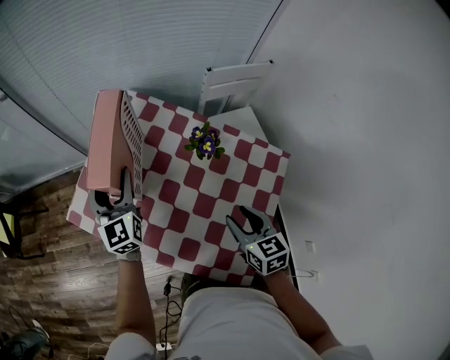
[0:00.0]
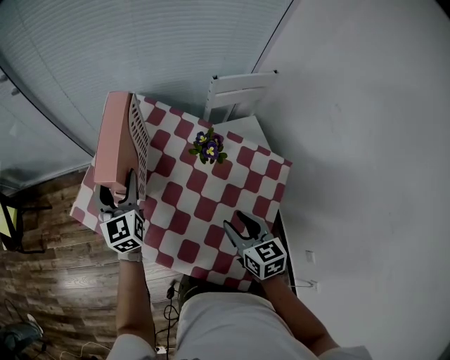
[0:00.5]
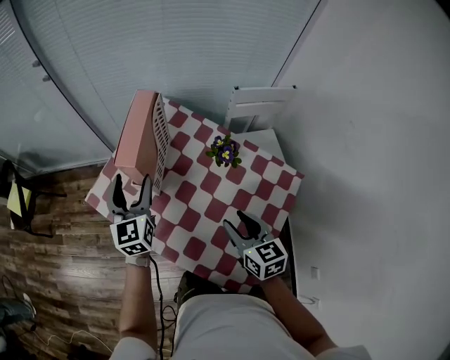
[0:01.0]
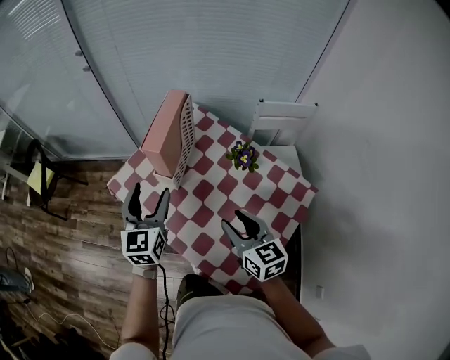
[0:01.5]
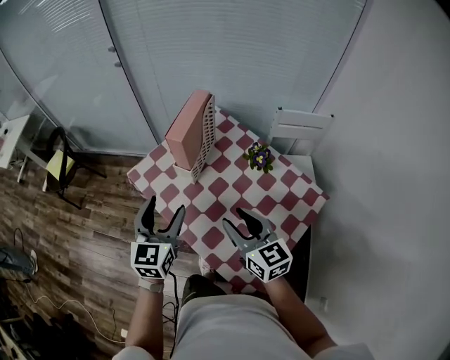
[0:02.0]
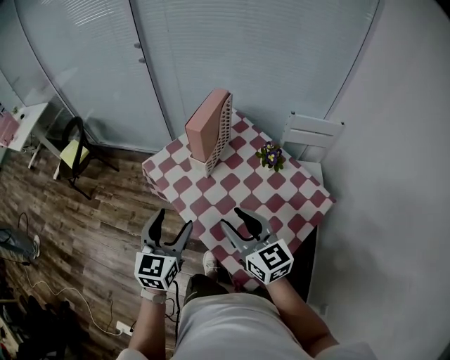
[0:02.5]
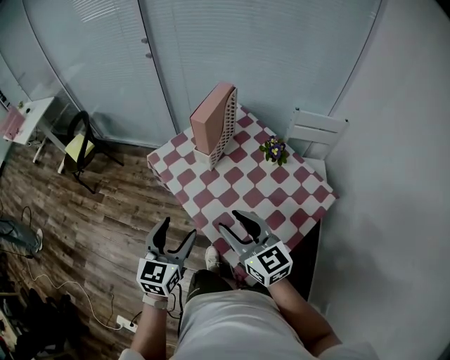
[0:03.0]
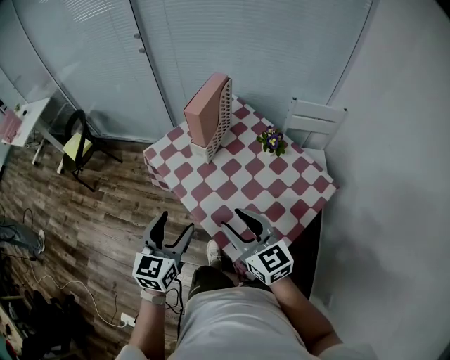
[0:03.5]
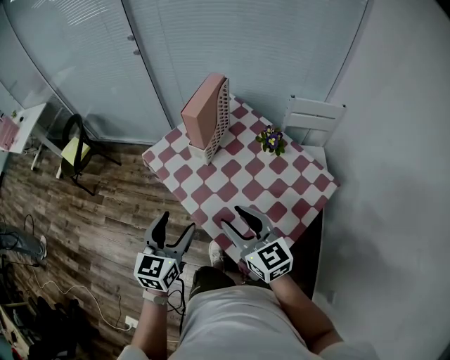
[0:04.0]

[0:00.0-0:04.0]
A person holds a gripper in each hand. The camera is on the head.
0:00.0 to 0:02.0: The left gripper shifts some 25 cm backward. Meanwhile the right gripper travels upward and to the left by about 15 cm, and changes its angle by some 40 degrees.
0:02.0 to 0:04.0: The right gripper is displaced backward and to the left by roughly 10 cm. The left gripper goes about 10 cm backward.

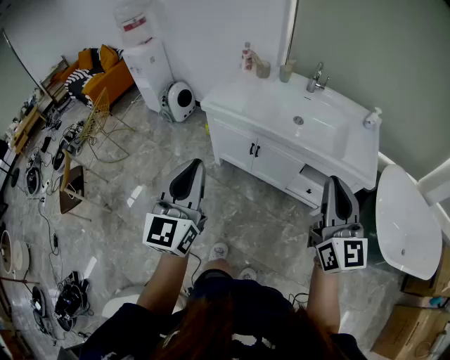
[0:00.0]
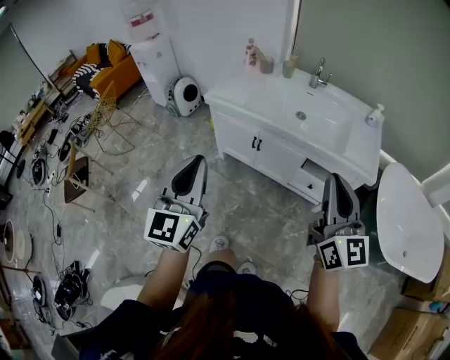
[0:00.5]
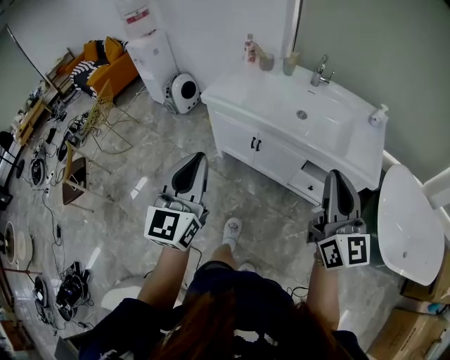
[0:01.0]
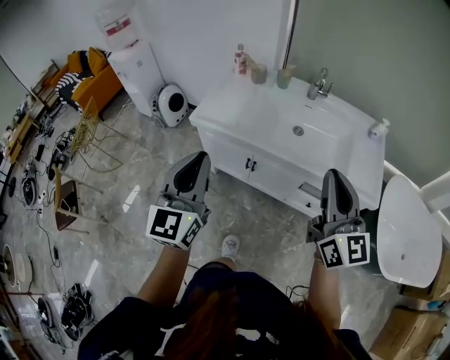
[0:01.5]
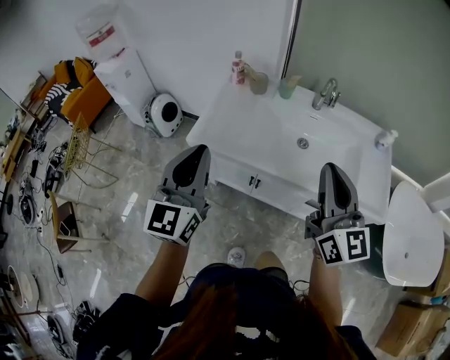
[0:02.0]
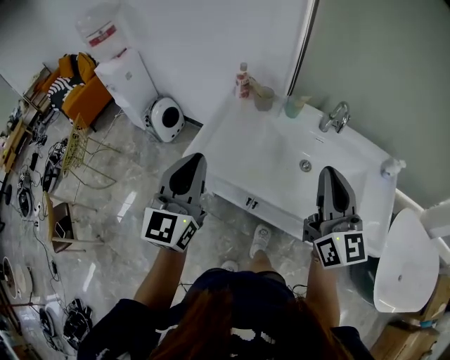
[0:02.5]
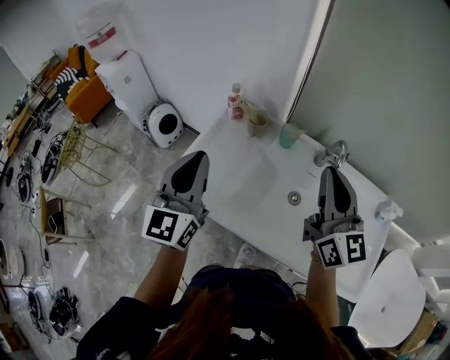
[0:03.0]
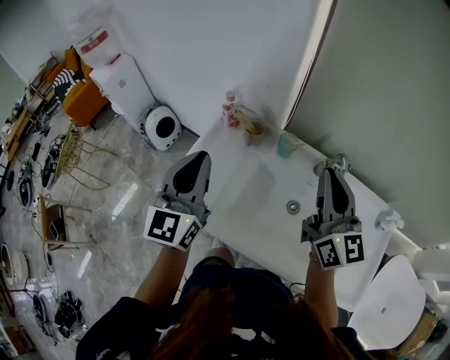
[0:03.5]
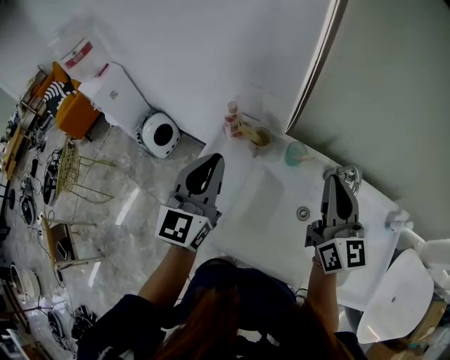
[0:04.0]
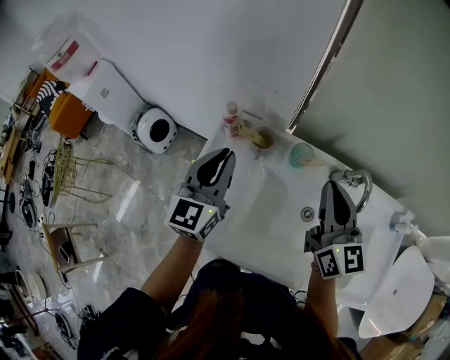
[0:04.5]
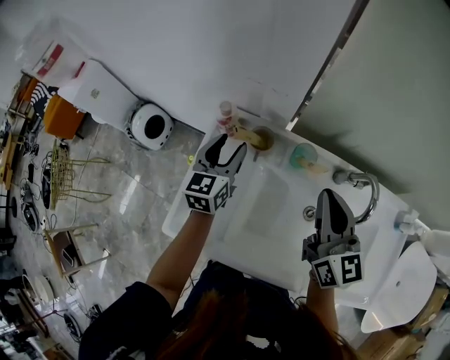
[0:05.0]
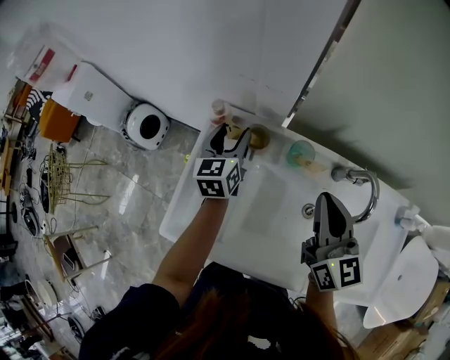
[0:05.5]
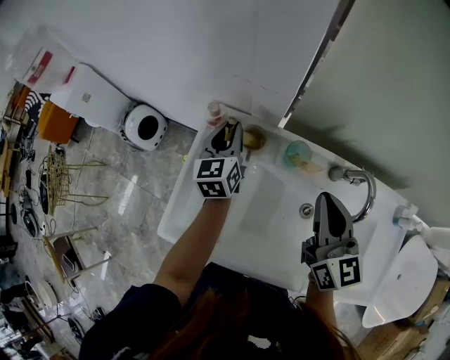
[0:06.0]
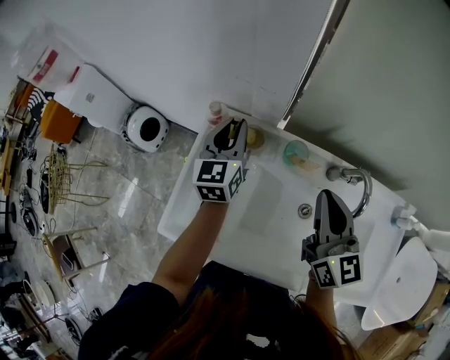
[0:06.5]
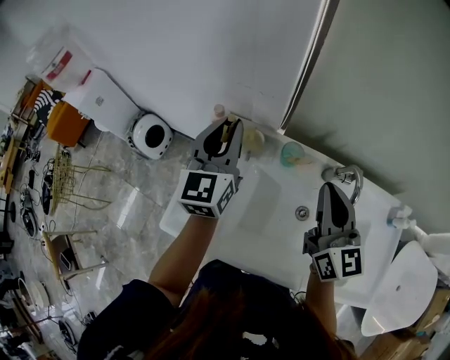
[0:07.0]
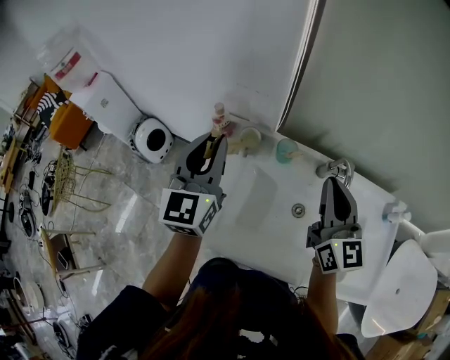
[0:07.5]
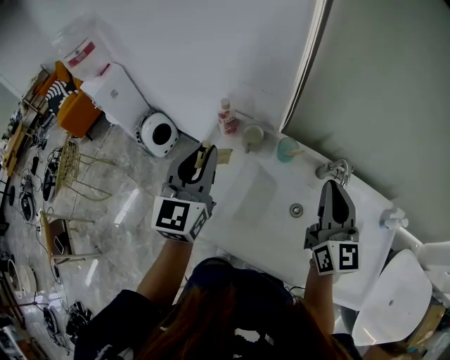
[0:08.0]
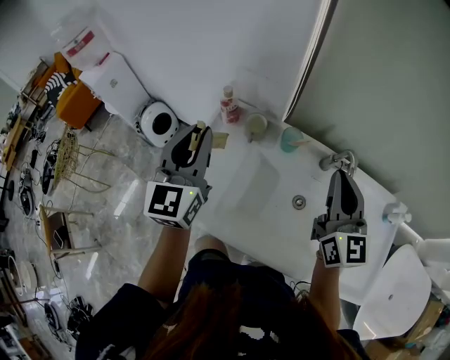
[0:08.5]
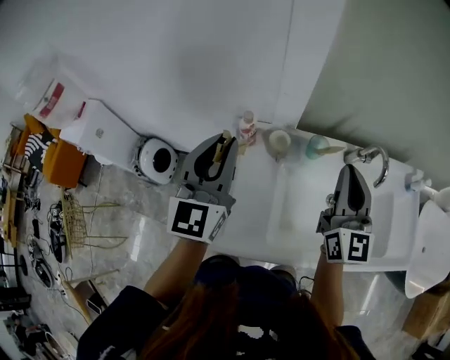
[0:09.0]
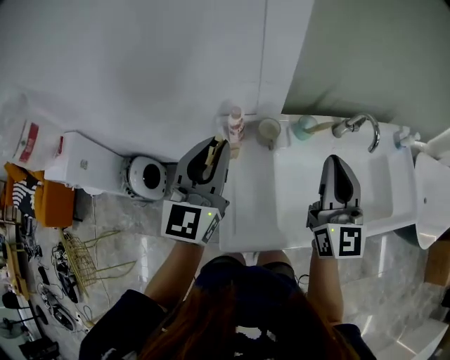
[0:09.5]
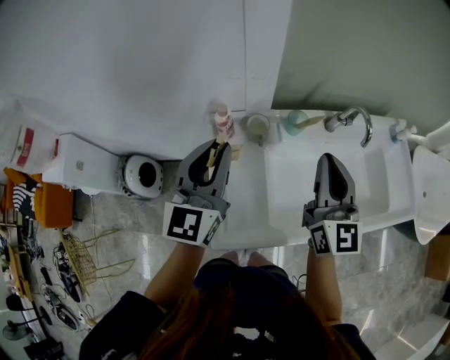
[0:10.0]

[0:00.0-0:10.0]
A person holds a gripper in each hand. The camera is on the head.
0:00.0 to 0:02.0: Both grippers move forward, approximately 30 cm.
0:02.0 to 0:04.0: Both grippers are carried forward, approximately 40 cm.
0:04.0 to 0:06.0: The right gripper shifts roughly 10 cm downward and forward. Meanwhile the left gripper is displaced forward and downward by about 30 cm, rotates approximately 20 degrees, and opens, then closes once more.
0:06.0 to 0:08.0: The left gripper goes approximately 30 cm backward and upward, and changes its angle by about 20 degrees, while the right gripper moves backward, upward and to the right, about 15 cm.
0:08.0 to 0:10.0: The left gripper shifts by approximately 15 cm, and changes its angle by roughly 30 degrees; the right gripper ends up some 20 cm from where it was, and swivels roughly 30 degrees.

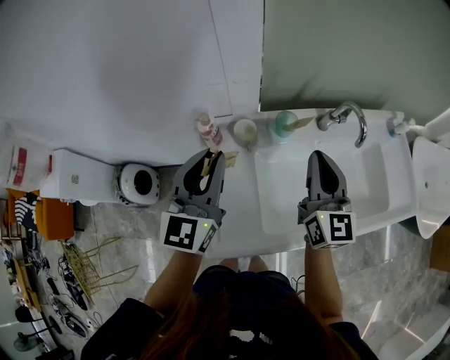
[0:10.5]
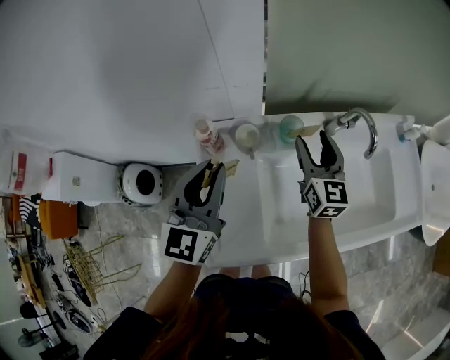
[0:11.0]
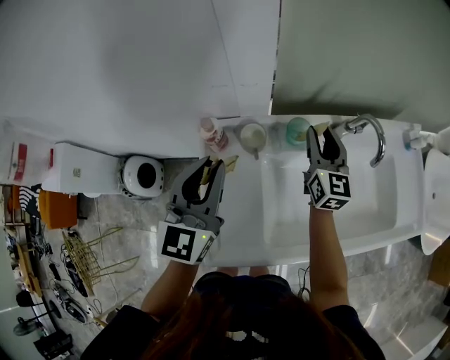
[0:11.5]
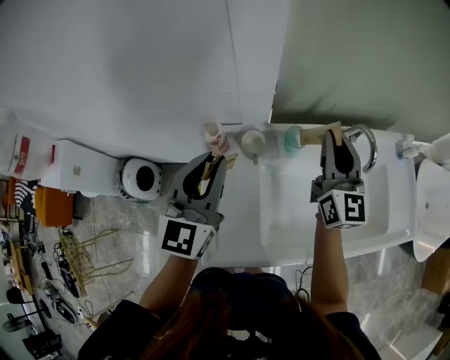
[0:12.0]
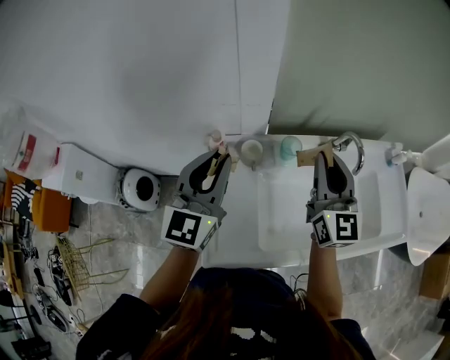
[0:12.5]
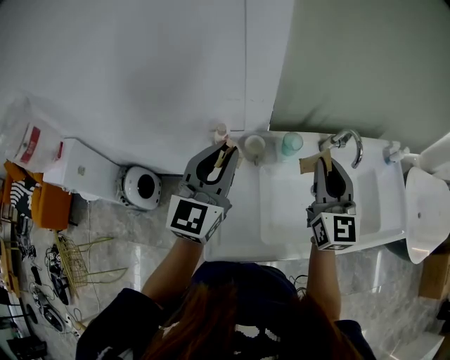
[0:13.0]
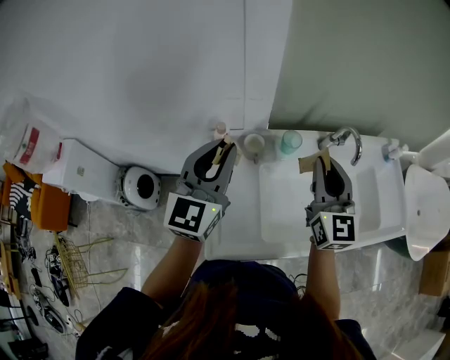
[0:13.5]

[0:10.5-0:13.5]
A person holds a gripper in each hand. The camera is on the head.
0:10.5 to 0:12.0: The right gripper shifts approximately 10 cm forward, and opens, then closes again.
0:12.0 to 0:13.5: The left gripper travels upward by about 5 cm. Meanwhile the right gripper heads backward, covering roughly 10 cm.

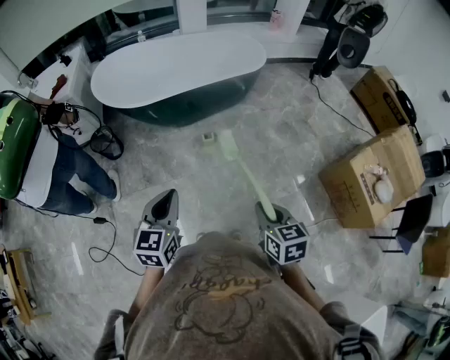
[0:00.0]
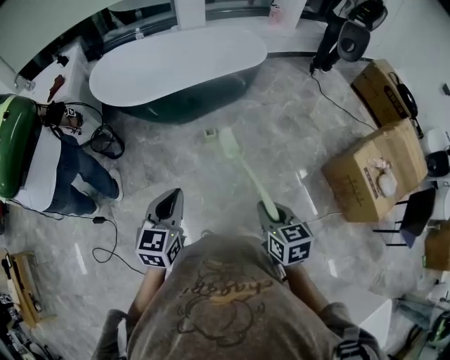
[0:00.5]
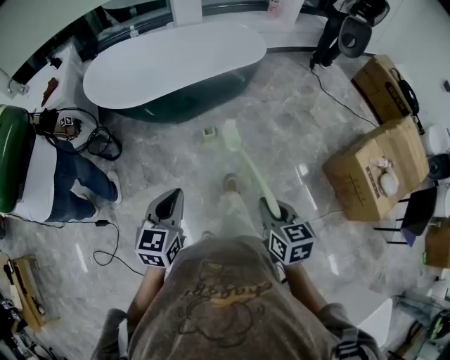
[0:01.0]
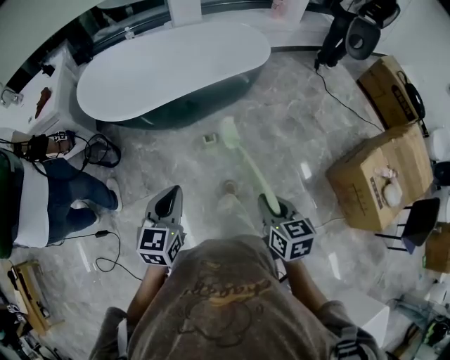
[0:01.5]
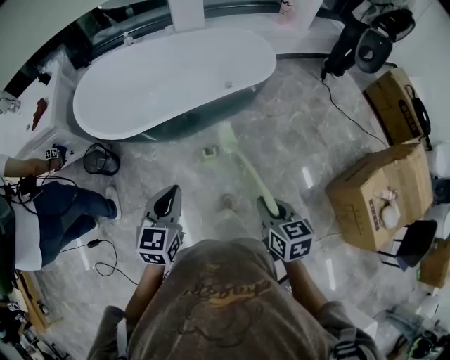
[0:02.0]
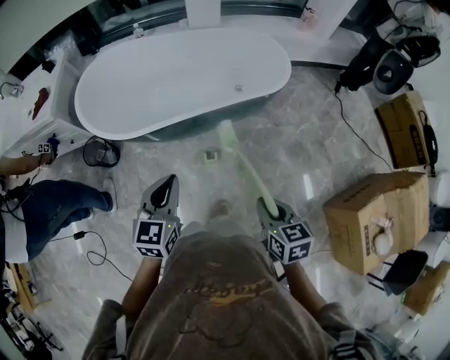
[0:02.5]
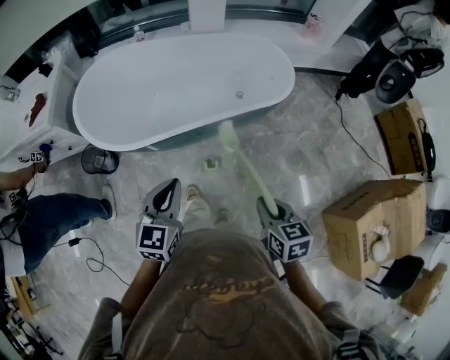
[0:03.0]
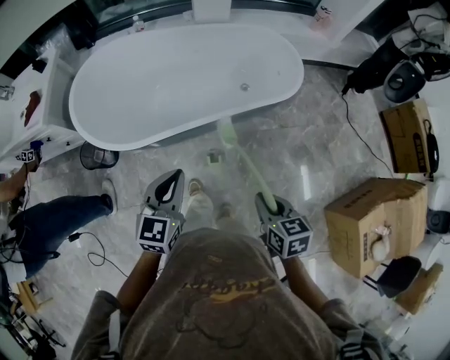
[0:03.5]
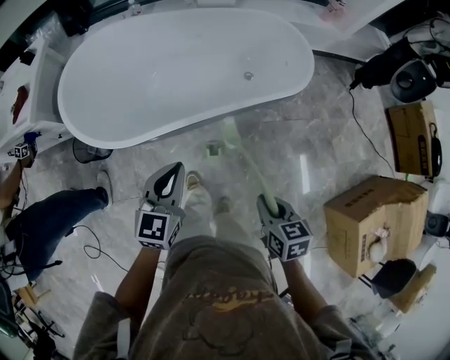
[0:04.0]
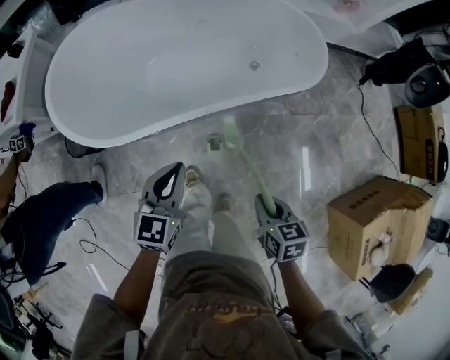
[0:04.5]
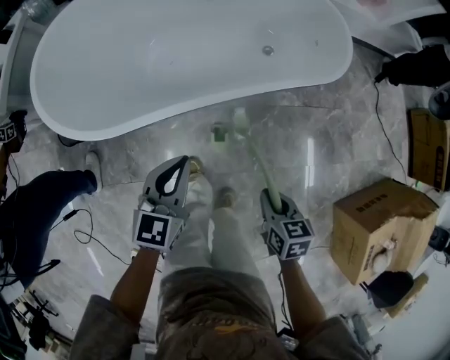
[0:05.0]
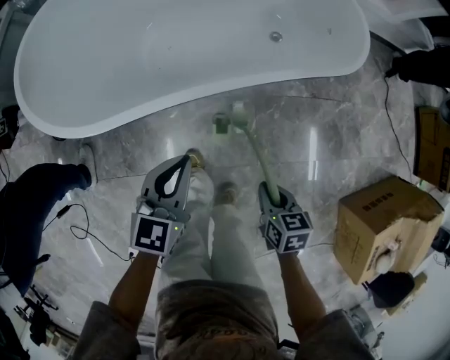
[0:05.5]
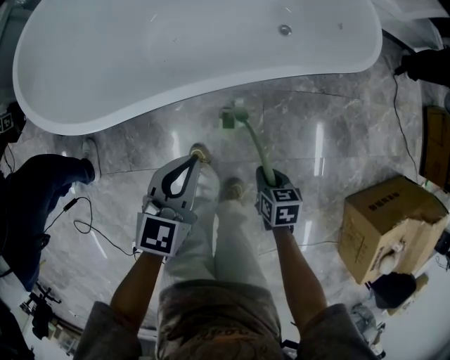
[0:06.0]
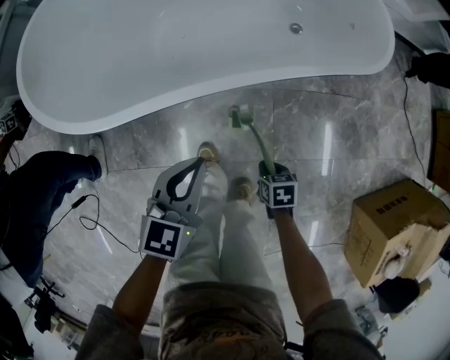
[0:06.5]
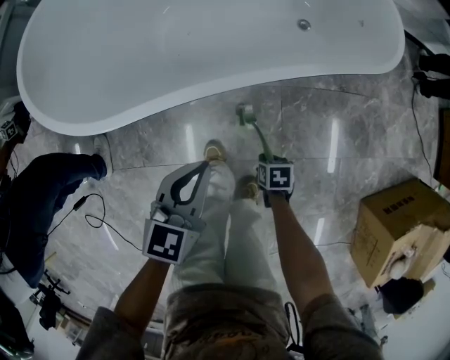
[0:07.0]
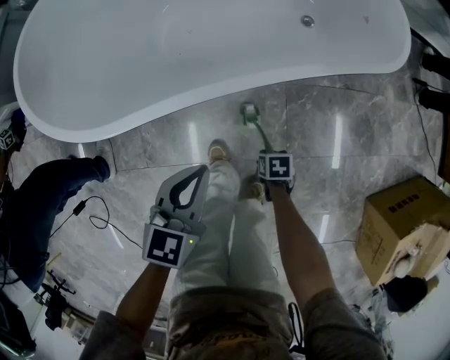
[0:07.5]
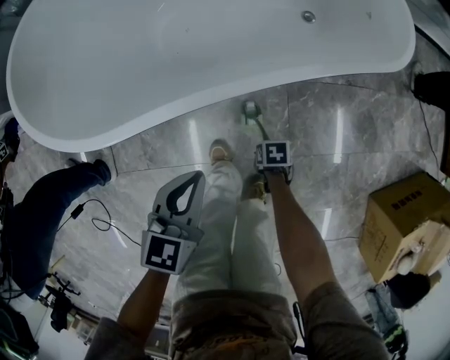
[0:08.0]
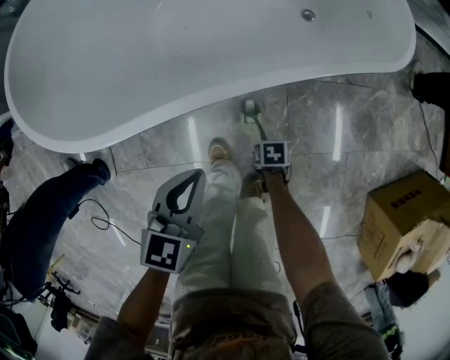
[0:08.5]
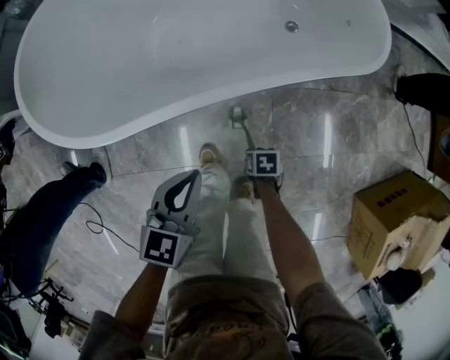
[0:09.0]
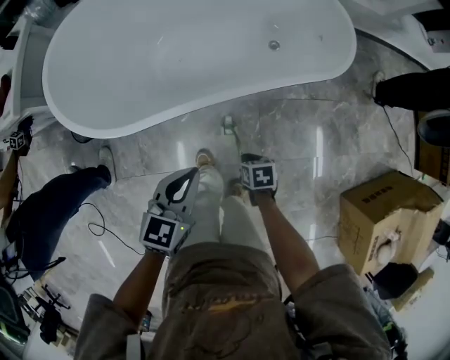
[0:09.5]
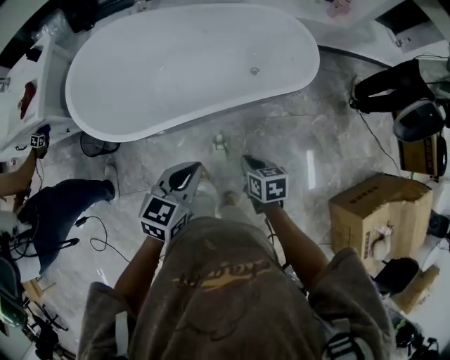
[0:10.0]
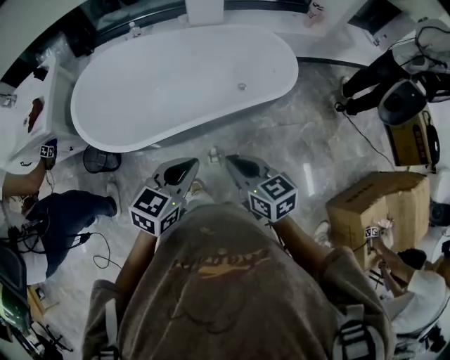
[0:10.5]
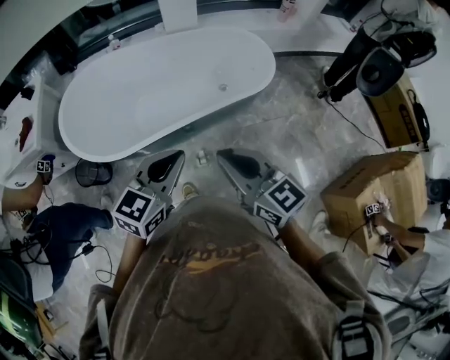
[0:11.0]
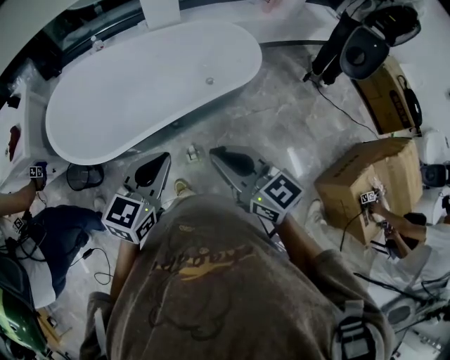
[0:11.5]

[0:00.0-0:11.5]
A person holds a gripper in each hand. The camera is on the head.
0:00.0 to 0:02.0: Both grippers travel together forward, approximately 25 cm.
0:02.0 to 0:04.0: The right gripper is displaced forward and downward by some 25 cm. The left gripper shifts some 25 cm forward.
0:04.0 to 0:06.0: The left gripper goes some 20 cm downward. Meanwhile the right gripper is displaced downward by roughly 30 cm.
0:06.0 to 0:07.5: The right gripper travels downward by some 15 cm.
0:07.5 to 0:09.5: The two grippers go approximately 15 cm upward. The right gripper opens, then closes again.
0:09.5 to 0:11.5: The left gripper is displaced upward by about 25 cm, and changes its angle by roughly 20 degrees, while the right gripper goes roughly 50 cm upward, and tips its fingers upward by roughly 60 degrees.
